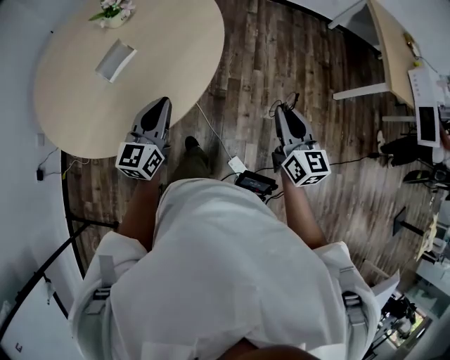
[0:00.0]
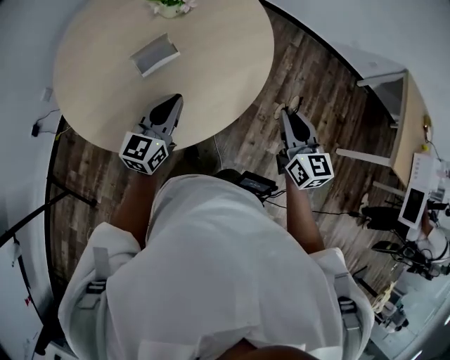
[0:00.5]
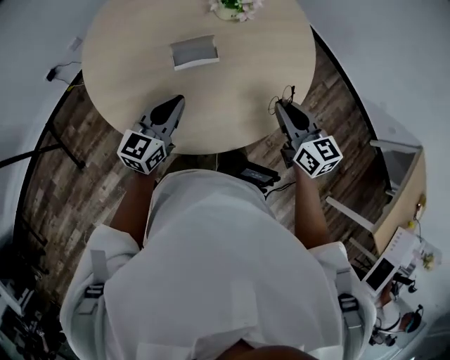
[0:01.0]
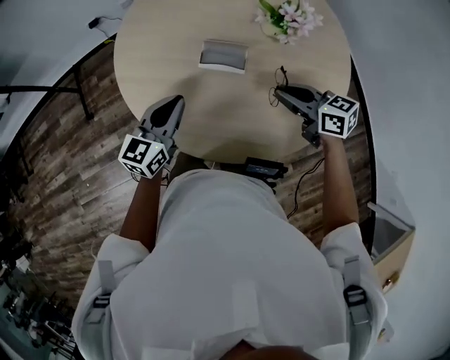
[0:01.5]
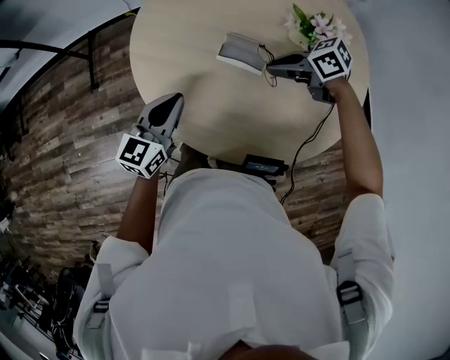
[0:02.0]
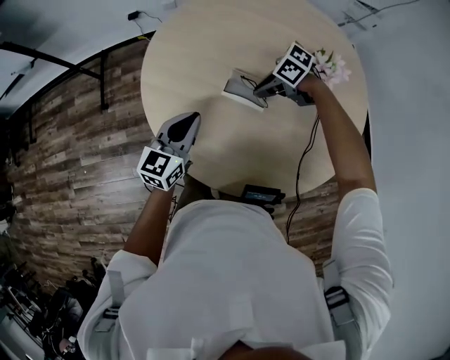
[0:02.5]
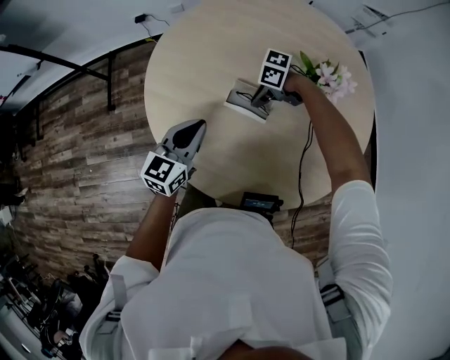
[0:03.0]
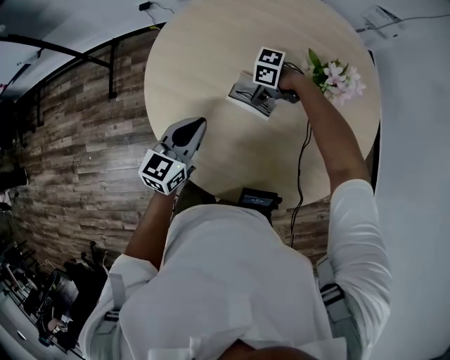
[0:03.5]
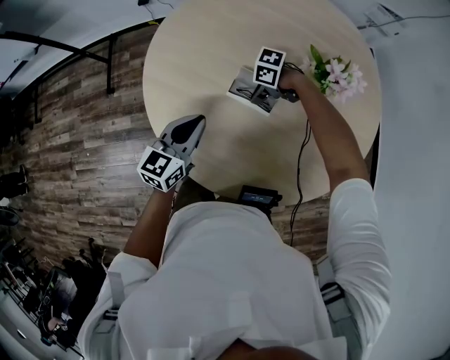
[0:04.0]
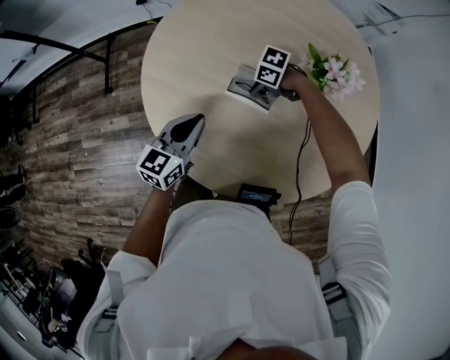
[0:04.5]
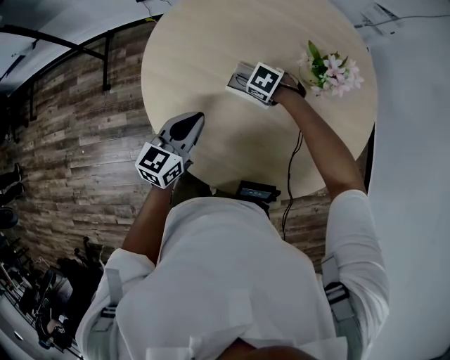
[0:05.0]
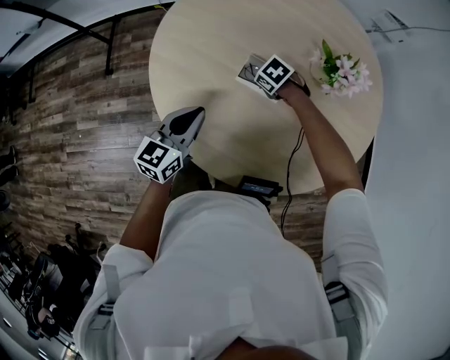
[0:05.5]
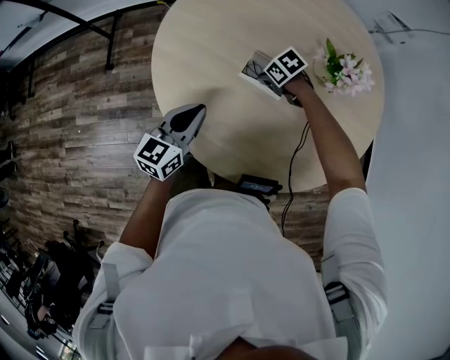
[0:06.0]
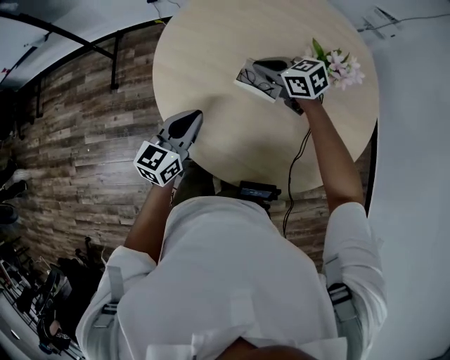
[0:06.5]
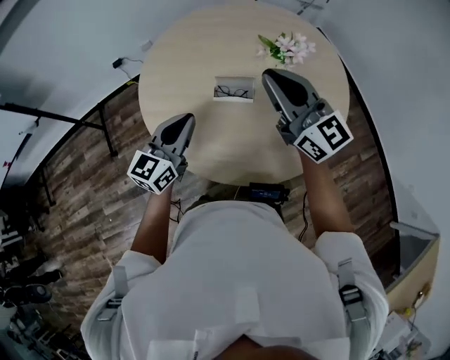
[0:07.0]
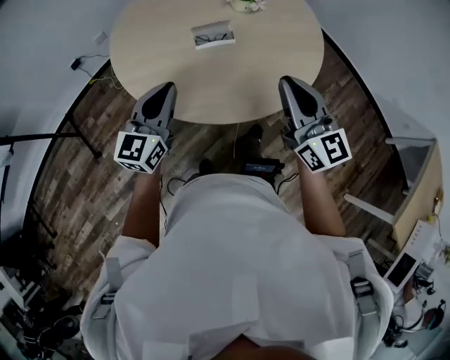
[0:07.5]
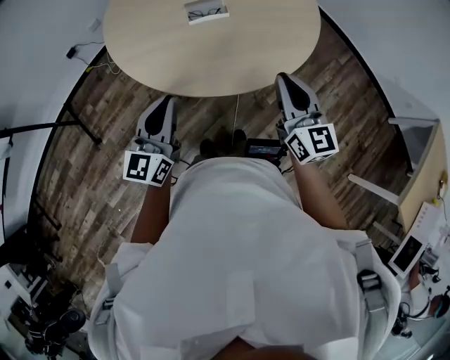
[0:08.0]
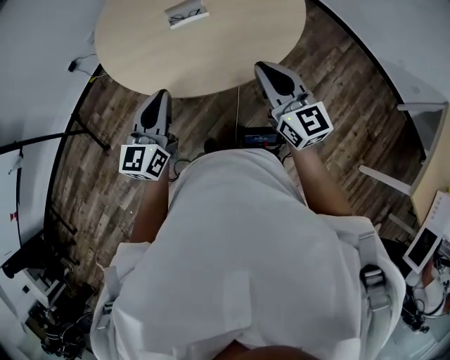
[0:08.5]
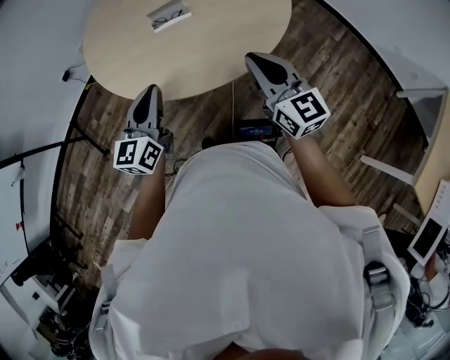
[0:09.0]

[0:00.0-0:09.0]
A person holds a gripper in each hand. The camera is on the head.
0:00.0 to 0:02.0: The left gripper shifts by some 20 cm, and swivels roughly 60 degrees. The right gripper moves about 60 cm, and changes its angle by approximately 140 degrees.
0:02.0 to 0:04.5: The left gripper moves approximately 5 cm. Meanwhile the right gripper is displaced downward by roughly 15 cm, and turns by about 40 degrees.
0:04.5 to 0:07.0: The left gripper goes roughly 15 cm upward, and turns by some 20 degrees. The right gripper is displaced upward by roughly 40 cm, and points its fingers approximately 60 degrees further upward.
0:07.0 to 0:09.0: The right gripper is displaced backward, downward and to the right by roughly 30 cm, and swivels roughly 30 degrees, while the left gripper travels backward by some 15 cm.

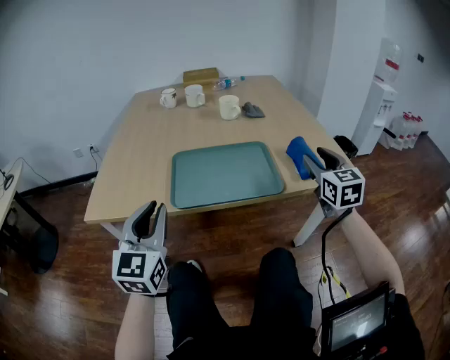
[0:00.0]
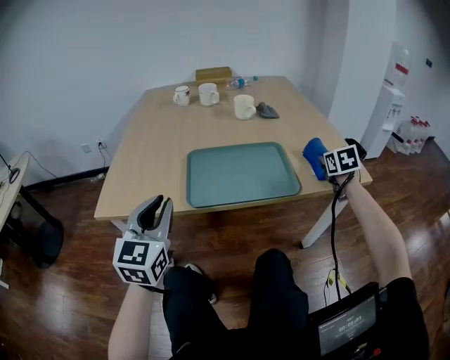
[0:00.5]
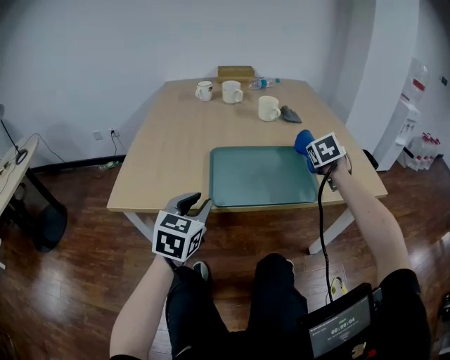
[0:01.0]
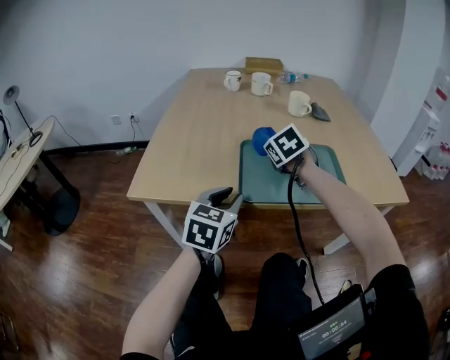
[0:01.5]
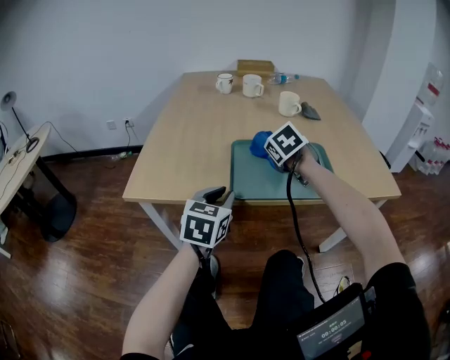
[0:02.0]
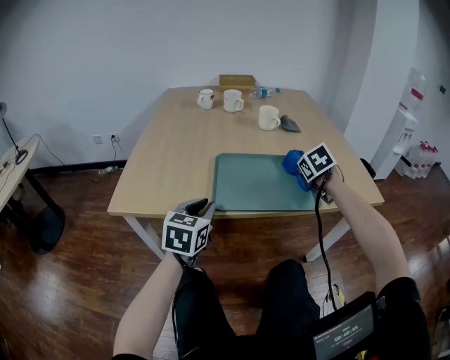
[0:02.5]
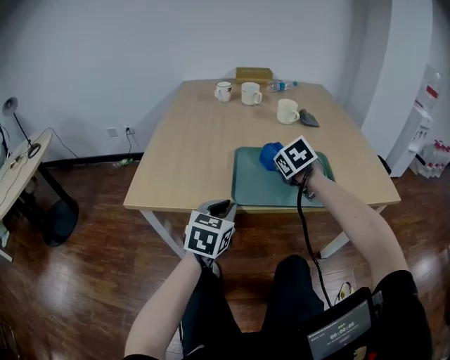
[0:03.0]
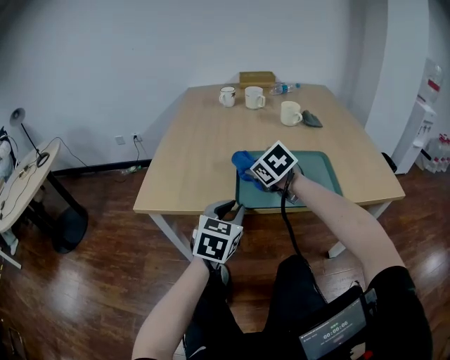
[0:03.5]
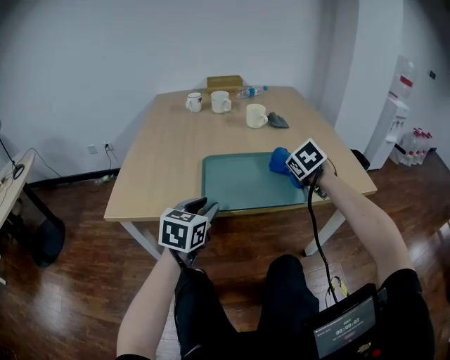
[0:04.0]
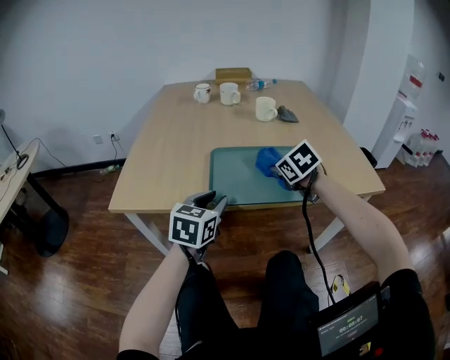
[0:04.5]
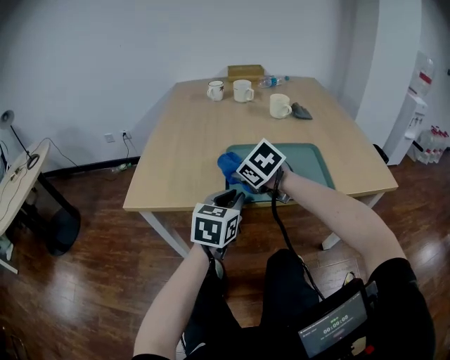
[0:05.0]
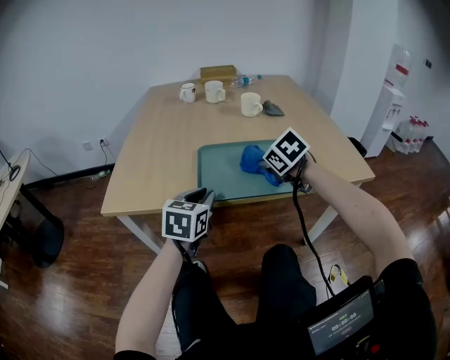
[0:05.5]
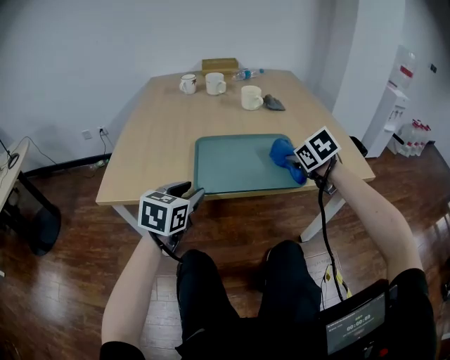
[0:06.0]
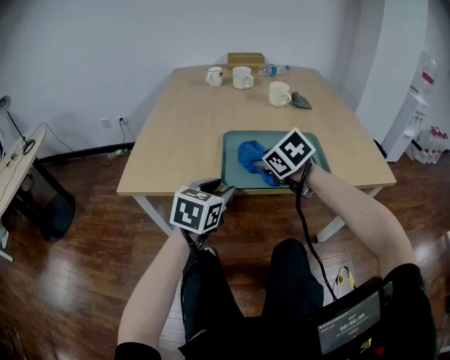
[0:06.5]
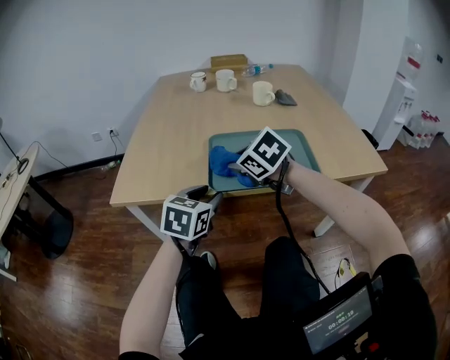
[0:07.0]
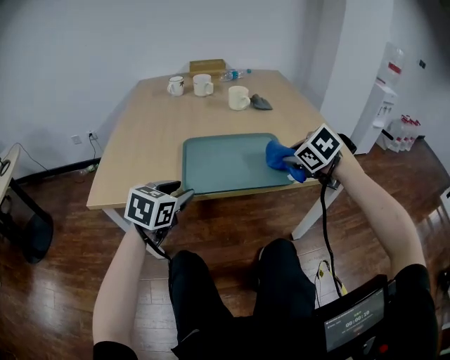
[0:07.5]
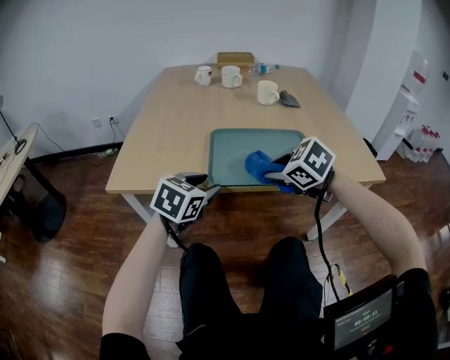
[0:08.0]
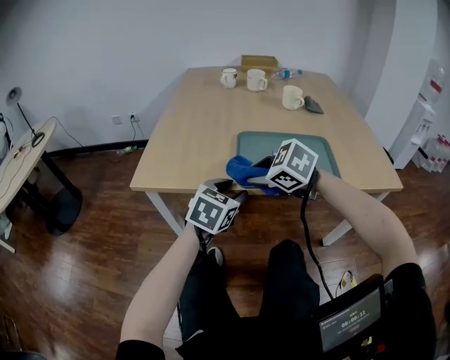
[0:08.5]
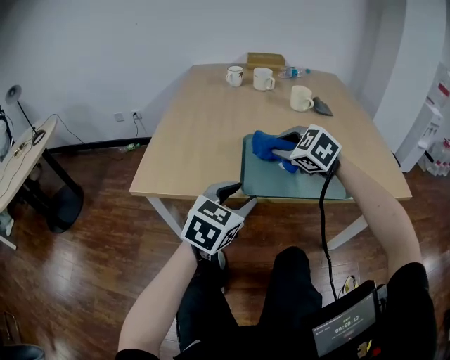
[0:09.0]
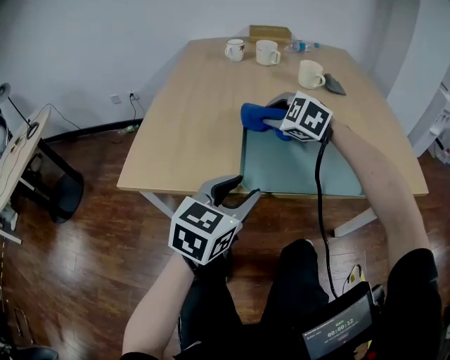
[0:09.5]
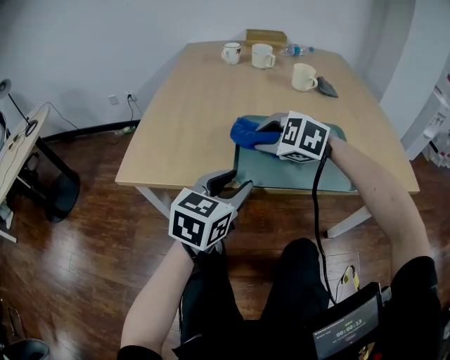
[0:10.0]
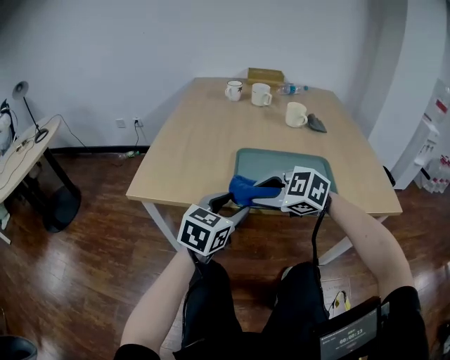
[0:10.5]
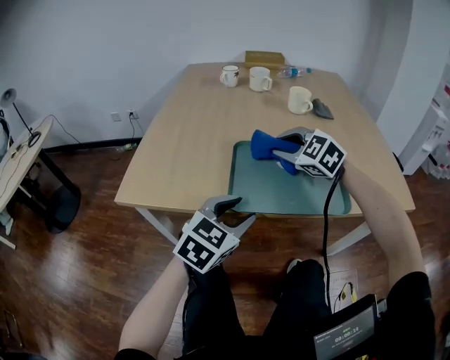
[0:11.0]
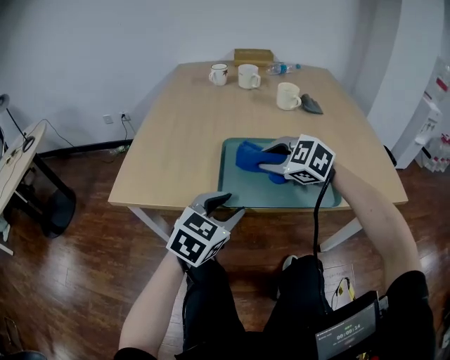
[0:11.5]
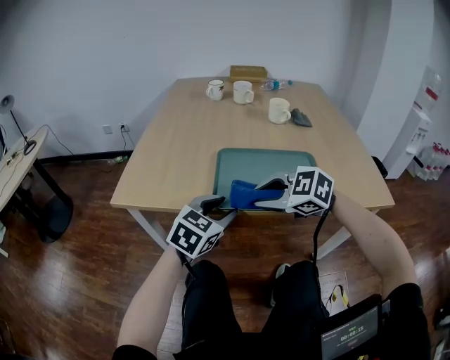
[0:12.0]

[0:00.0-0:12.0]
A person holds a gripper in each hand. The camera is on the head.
0:00.0 to 0:02.0: The left gripper travels downward and forward by about 10 cm, and swivels about 30 degrees; the right gripper moves to the left, approximately 30 cm, and angles its fingers downward, by approximately 40 degrees.
0:02.0 to 0:04.0: The right gripper moves left and right over some 25 cm, changing direction 2 times.
0:04.0 to 0:06.0: The right gripper goes to the left and returns, roughly 25 cm each way.
0:06.0 to 0:08.0: The right gripper moves left and right over roughly 25 cm, changing direction 2 times, and turns by some 30 degrees.
0:08.0 to 0:10.0: The right gripper heads forward and to the left, covering approximately 15 cm, and rotates approximately 30 degrees.
0:10.0 to 0:12.0: The right gripper moves forward and backward over approximately 15 cm, changing direction 2 times.

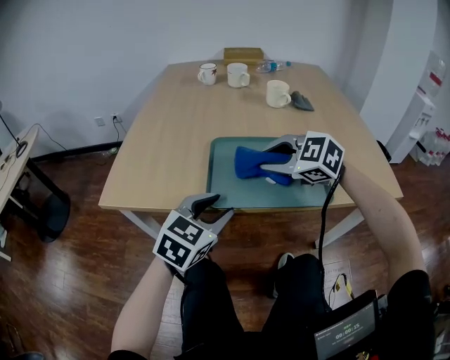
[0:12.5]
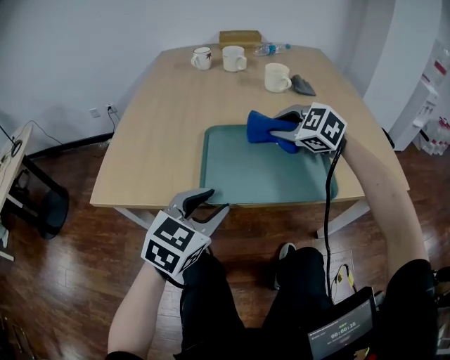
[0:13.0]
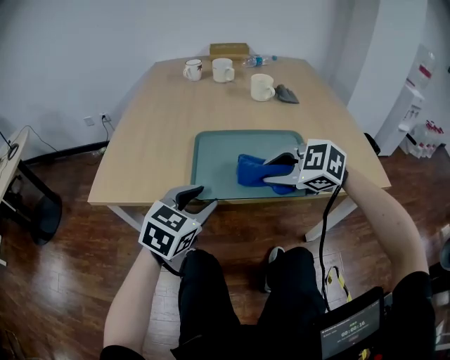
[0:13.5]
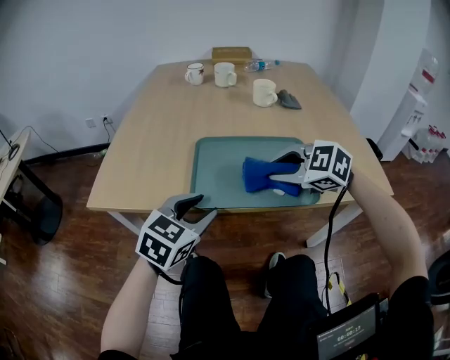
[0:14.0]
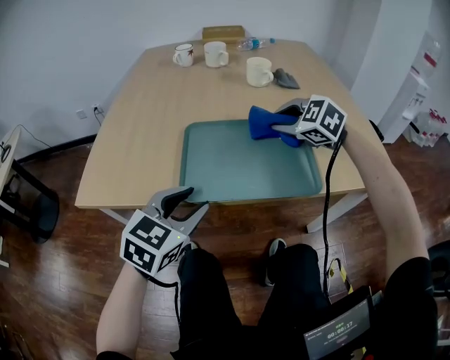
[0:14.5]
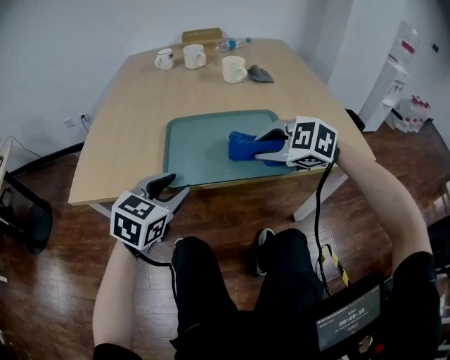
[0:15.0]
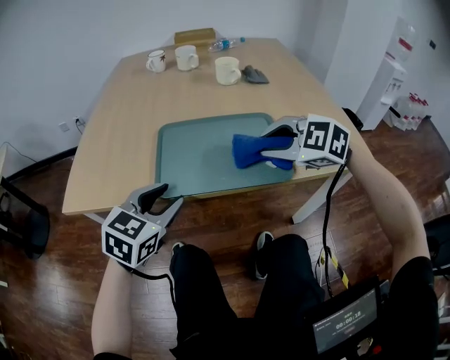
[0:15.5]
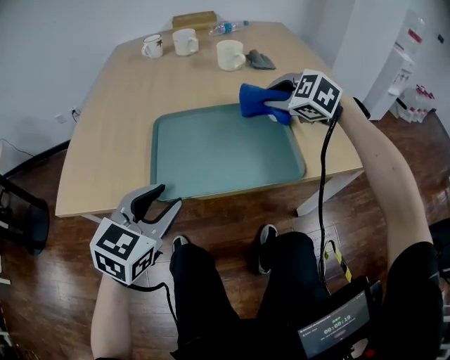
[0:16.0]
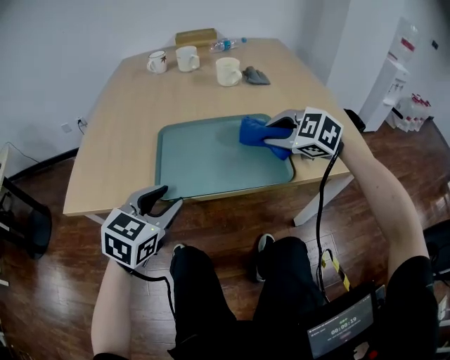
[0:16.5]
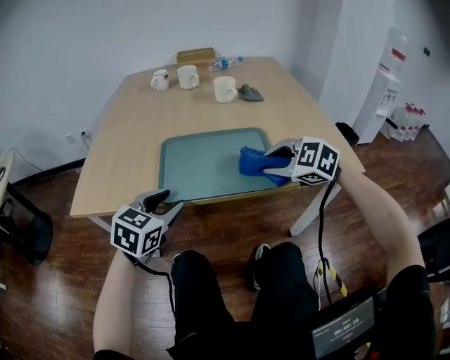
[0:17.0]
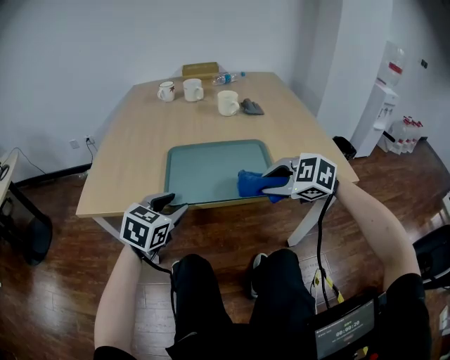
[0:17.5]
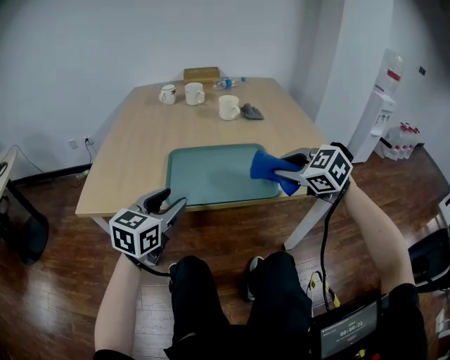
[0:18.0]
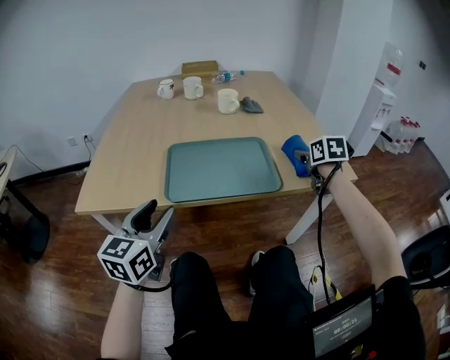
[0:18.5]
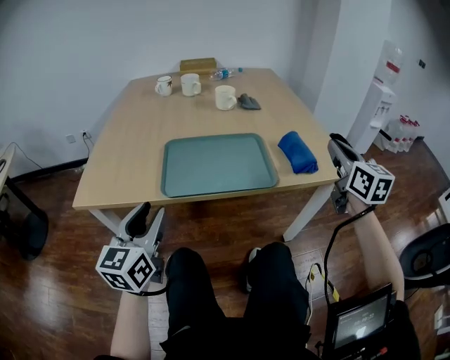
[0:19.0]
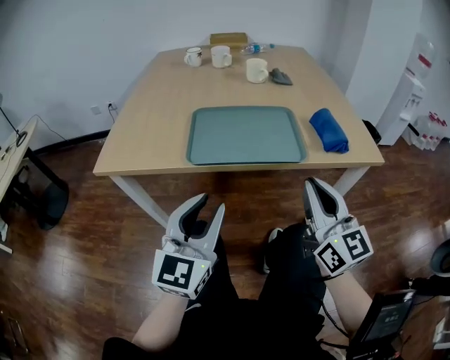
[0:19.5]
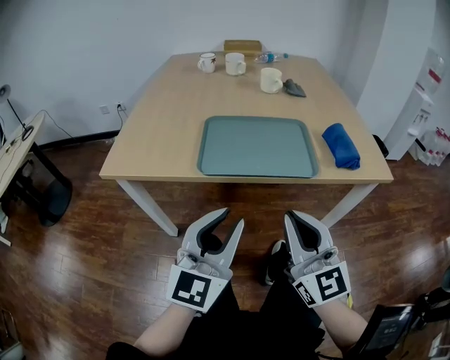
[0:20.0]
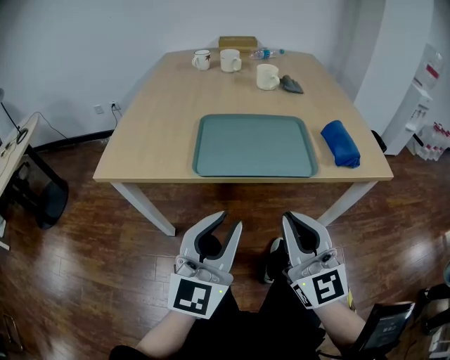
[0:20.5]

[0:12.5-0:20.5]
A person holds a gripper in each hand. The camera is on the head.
0:12.5 to 0:14.5: The right gripper goes forward and backward, roughly 15 cm each way, reversing 2 times.
0:14.5 to 0:16.5: The right gripper goes forward and backward, approximately 15 cm each way, reversing 2 times.
0:16.5 to 0:18.5: The left gripper moves upward, some 5 cm, and rotates some 30 degrees, while the right gripper travels to the right by approximately 15 cm, and rolls clockwise, seen from behind, by approximately 60 degrees.
0:18.5 to 0:20.5: The left gripper goes some 15 cm to the right and backward, turns by some 20 degrees, and closes up, while the right gripper travels backward and to the left by approximately 35 cm, tips its fingers upward by roughly 50 degrees, and closes.
